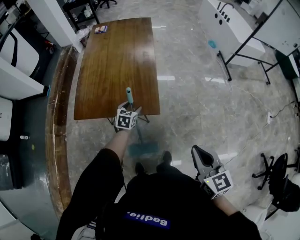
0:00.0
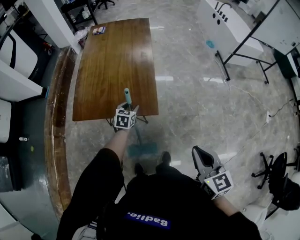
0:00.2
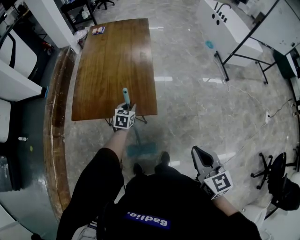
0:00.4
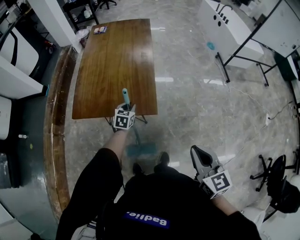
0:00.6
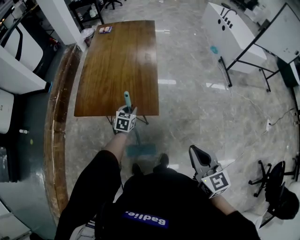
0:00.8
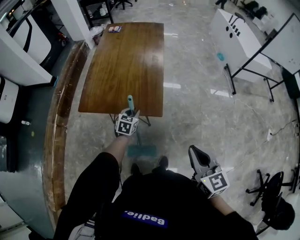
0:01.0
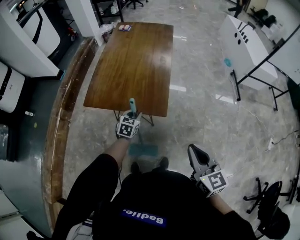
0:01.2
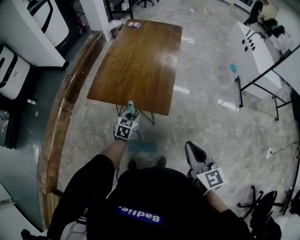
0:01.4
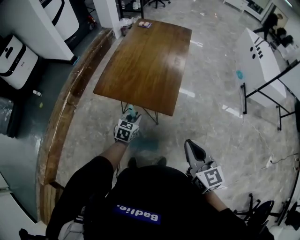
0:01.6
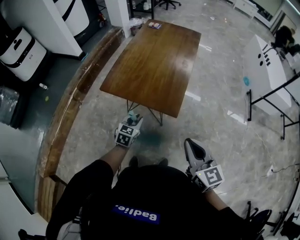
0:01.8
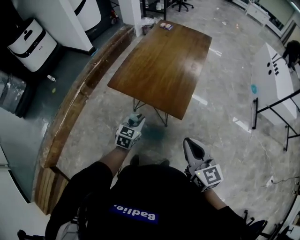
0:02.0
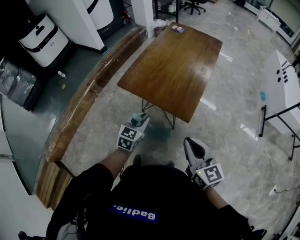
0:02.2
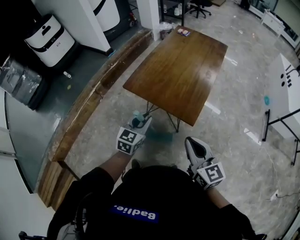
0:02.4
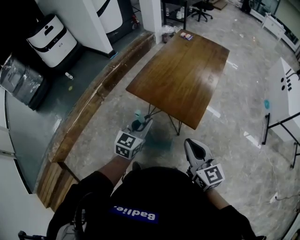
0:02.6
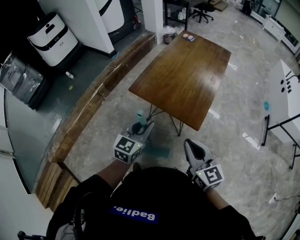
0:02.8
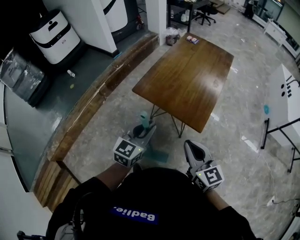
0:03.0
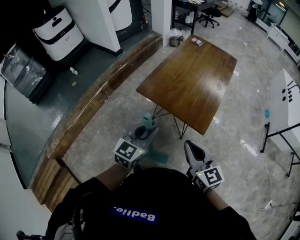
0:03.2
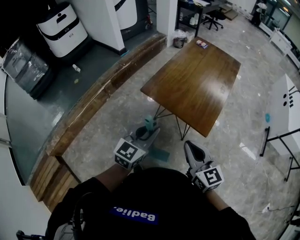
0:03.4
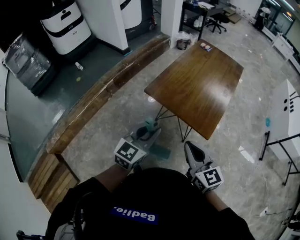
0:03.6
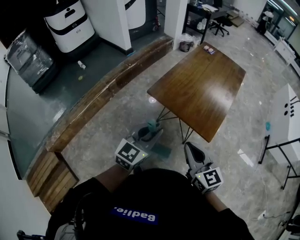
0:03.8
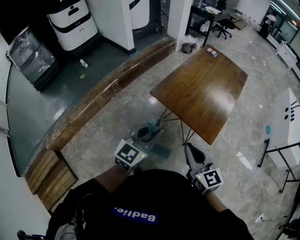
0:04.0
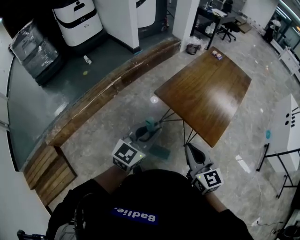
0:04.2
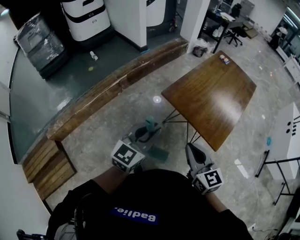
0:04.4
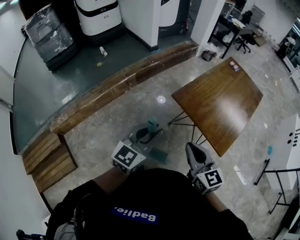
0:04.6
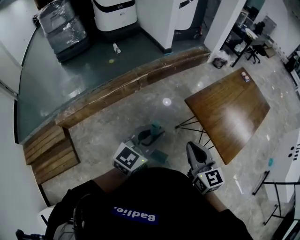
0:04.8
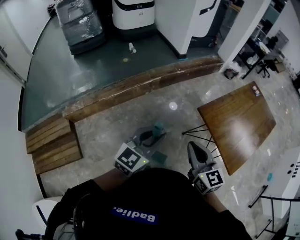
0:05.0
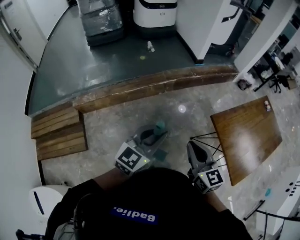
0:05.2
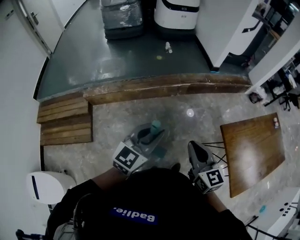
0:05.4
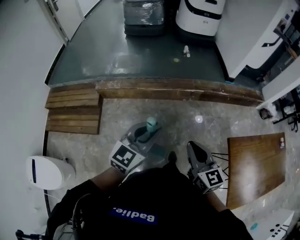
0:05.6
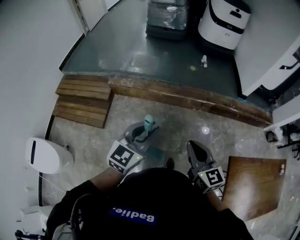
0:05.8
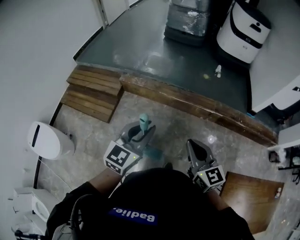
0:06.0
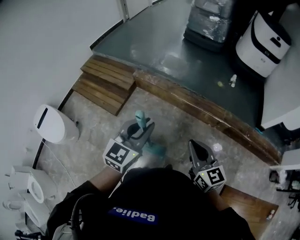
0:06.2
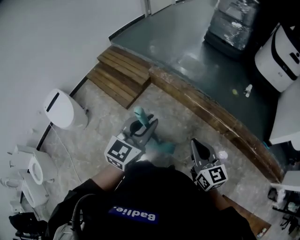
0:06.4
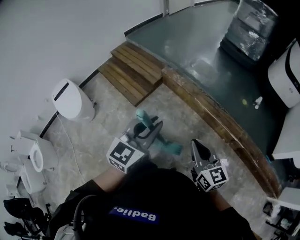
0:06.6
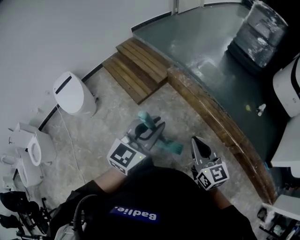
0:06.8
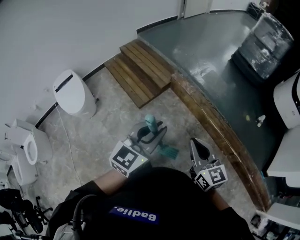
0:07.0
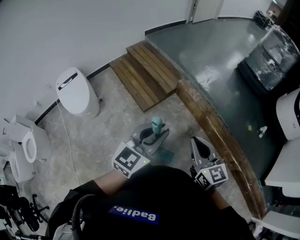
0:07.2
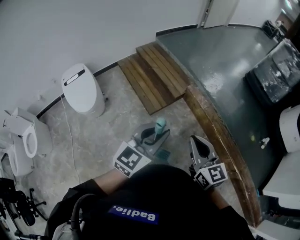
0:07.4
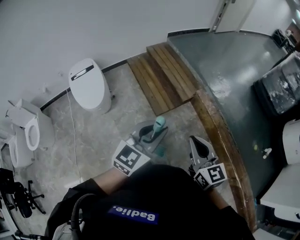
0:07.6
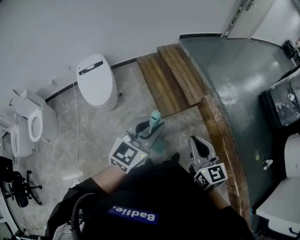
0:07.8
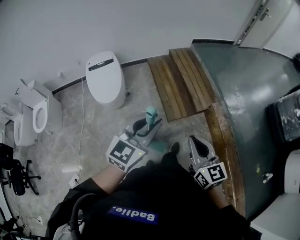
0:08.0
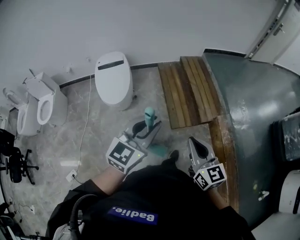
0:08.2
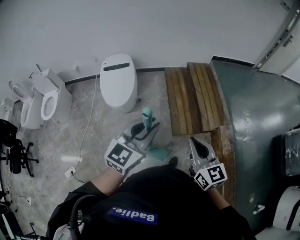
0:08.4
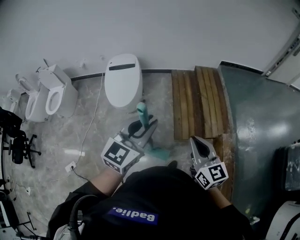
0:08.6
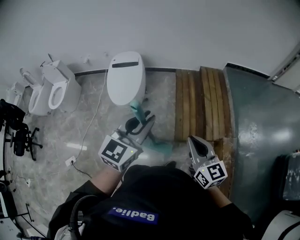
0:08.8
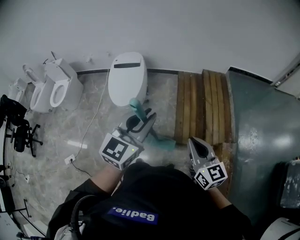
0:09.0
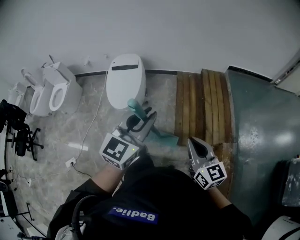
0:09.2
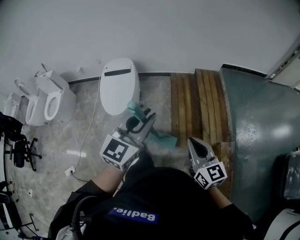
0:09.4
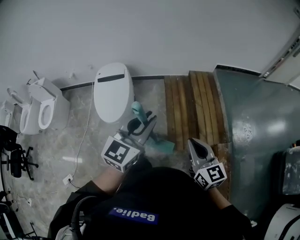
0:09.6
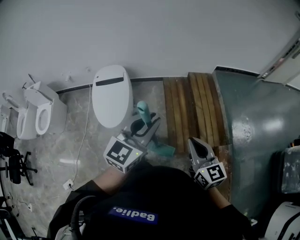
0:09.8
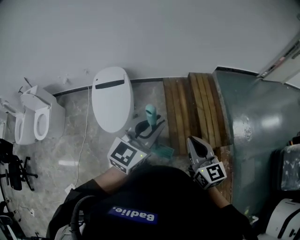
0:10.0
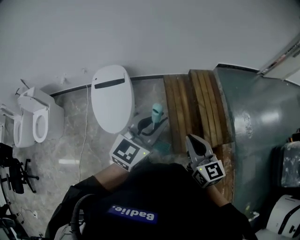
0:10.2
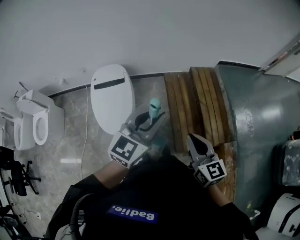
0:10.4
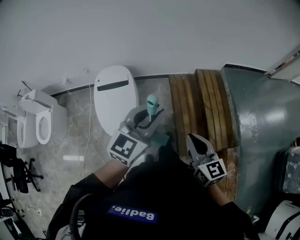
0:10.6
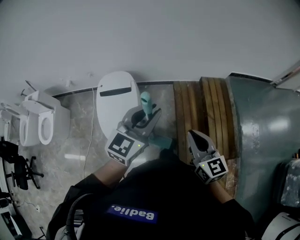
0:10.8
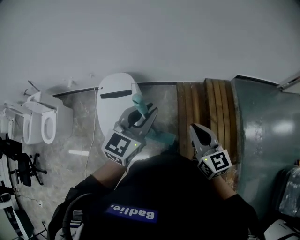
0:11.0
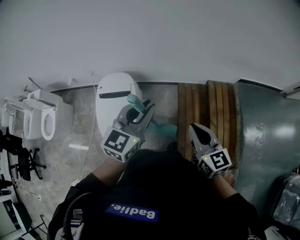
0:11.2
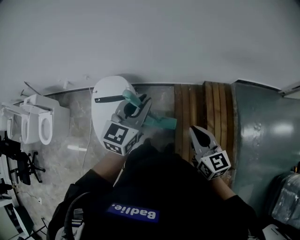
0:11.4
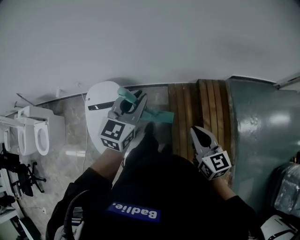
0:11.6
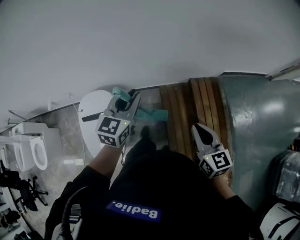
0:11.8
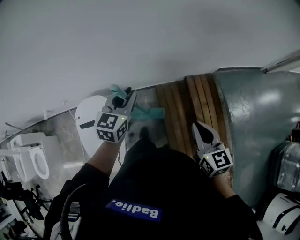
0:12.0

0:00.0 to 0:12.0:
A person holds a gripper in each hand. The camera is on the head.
0:00.0 to 0:01.6: The left gripper heads backward and to the left, covering about 15 cm, and closes up.
0:01.6 to 0:03.0: The right gripper is displaced to the left by about 15 cm; the left gripper moves upward and to the left, some 25 cm, and rotates some 20 degrees.
0:03.0 to 0:04.4: Both grippers move to the left, roughly 15 cm.
0:04.4 to 0:06.0: The two grippers travel together, some 40 cm. The left gripper rotates about 60 degrees. The right gripper turns by some 60 degrees.
0:06.0 to 0:07.6: The left gripper moves some 35 cm, and swivels roughly 40 degrees; the right gripper changes place by approximately 40 cm, and changes its angle by approximately 40 degrees.
0:07.6 to 0:09.0: The left gripper moves about 25 cm, and rotates roughly 40 degrees, while the right gripper shifts by about 30 cm, and swivels roughly 40 degrees.
0:09.0 to 0:10.4: The right gripper is displaced forward and to the left by some 25 cm. The left gripper heads forward, covering some 25 cm.
0:10.4 to 0:12.0: Both grippers travel together forward, approximately 40 cm.

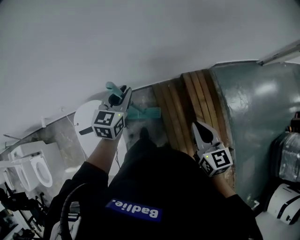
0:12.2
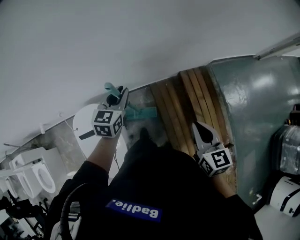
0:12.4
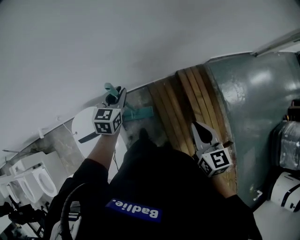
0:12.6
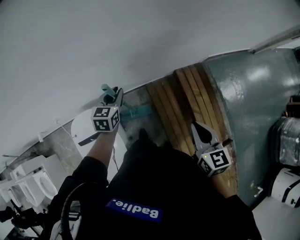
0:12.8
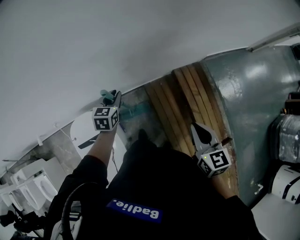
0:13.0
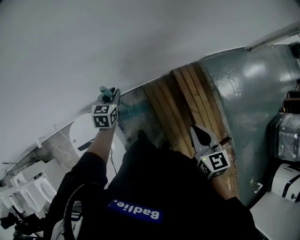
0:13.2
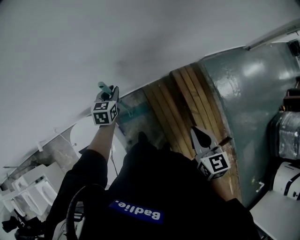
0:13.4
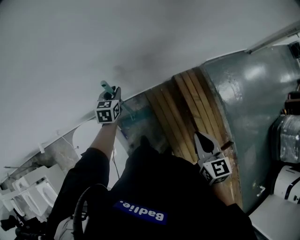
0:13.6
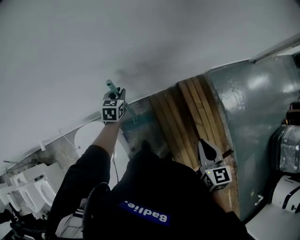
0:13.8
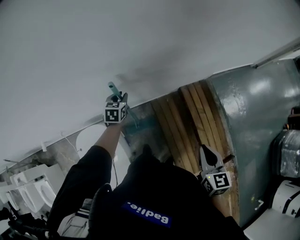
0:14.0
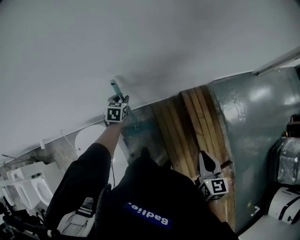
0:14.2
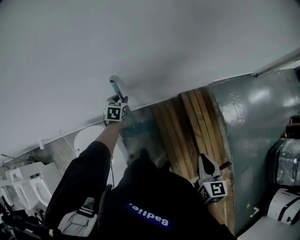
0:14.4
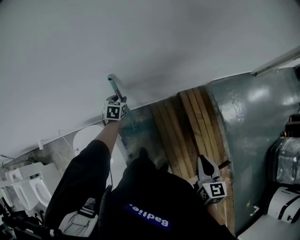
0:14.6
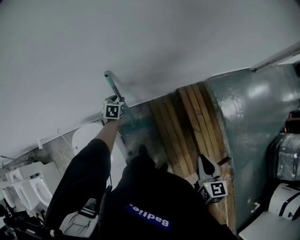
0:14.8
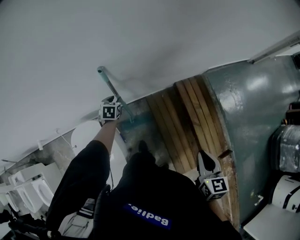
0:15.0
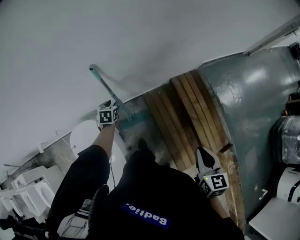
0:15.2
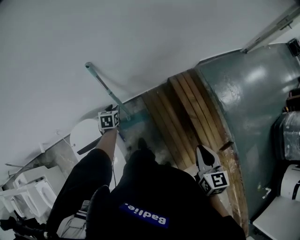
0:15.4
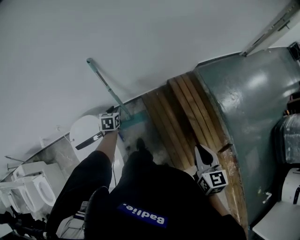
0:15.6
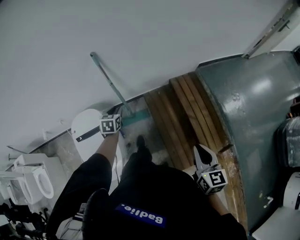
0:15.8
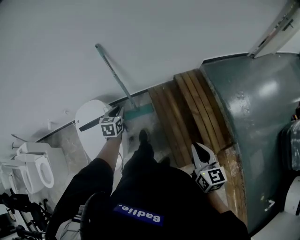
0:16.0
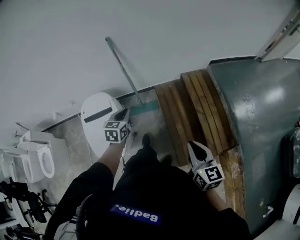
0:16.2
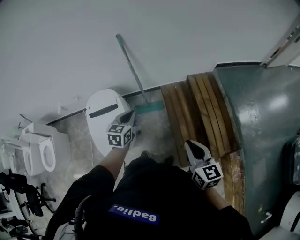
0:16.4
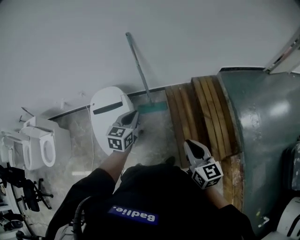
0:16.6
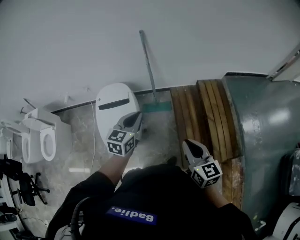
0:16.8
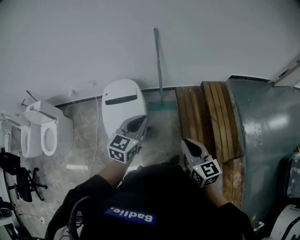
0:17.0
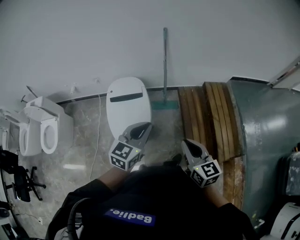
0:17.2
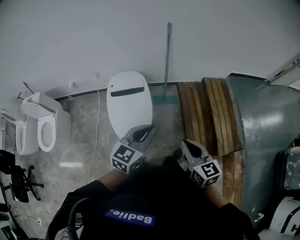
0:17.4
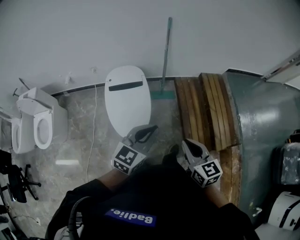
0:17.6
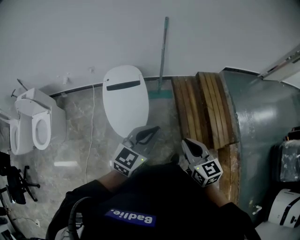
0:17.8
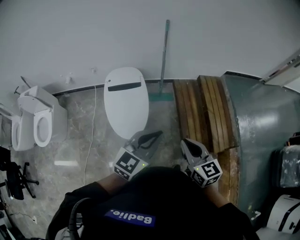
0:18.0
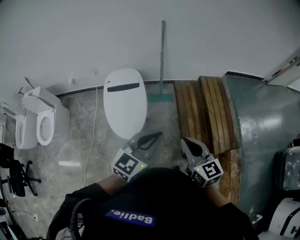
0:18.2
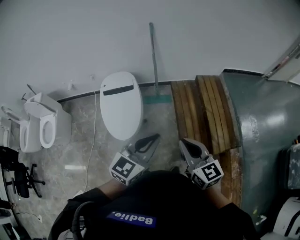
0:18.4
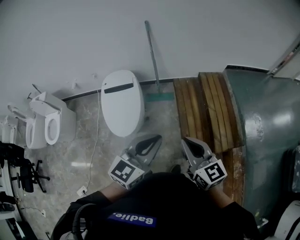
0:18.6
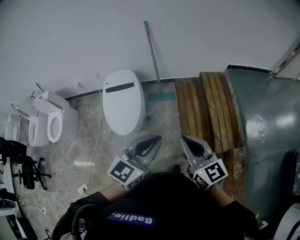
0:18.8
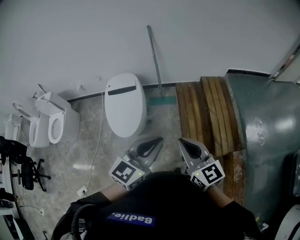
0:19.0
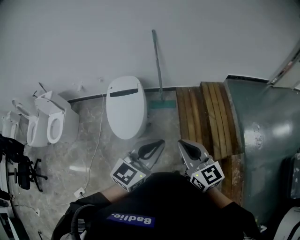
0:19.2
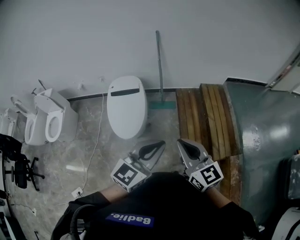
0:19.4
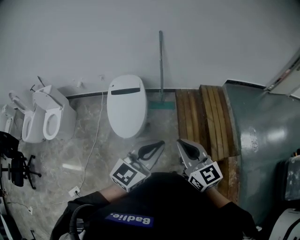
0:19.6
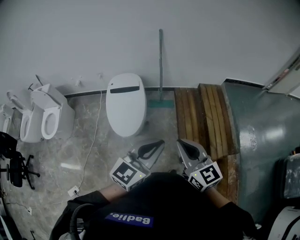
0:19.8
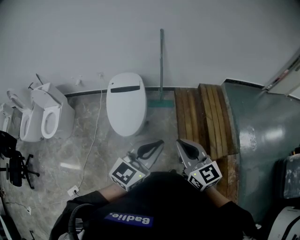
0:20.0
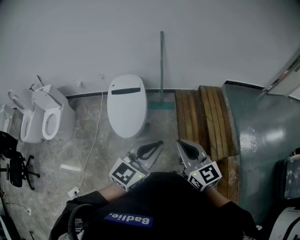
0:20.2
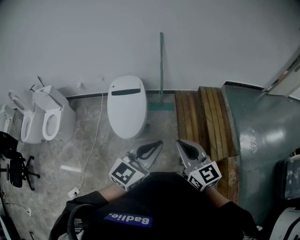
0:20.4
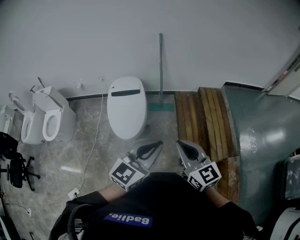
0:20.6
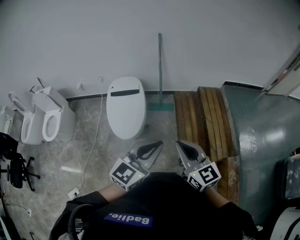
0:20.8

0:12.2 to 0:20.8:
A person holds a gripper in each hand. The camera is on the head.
0:12.2 to 0:13.6: The left gripper is displaced downward and forward by some 20 cm.
0:13.6 to 0:15.0: The right gripper goes roughly 5 cm backward. The left gripper shifts roughly 10 cm downward.
0:15.0 to 0:16.6: The right gripper heads backward, covering some 20 cm, and changes its angle by approximately 30 degrees. The left gripper goes roughly 50 cm backward and upward, rotates roughly 20 degrees, and closes up.
0:16.6 to 0:18.0: The left gripper moves backward and upward, approximately 25 cm, and rotates approximately 30 degrees; the right gripper heads to the left and backward, covering some 25 cm.
0:18.0 to 0:19.4: The left gripper heads to the right, backward and upward, covering some 20 cm. The right gripper moves to the right, upward and backward, some 15 cm.
0:19.4 to 0:20.8: The grippers move only a little.

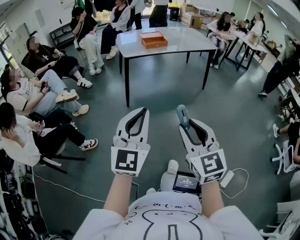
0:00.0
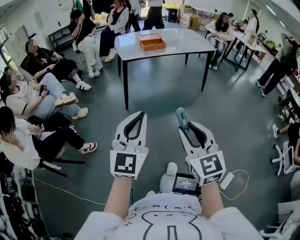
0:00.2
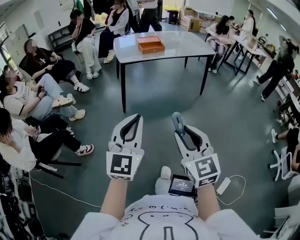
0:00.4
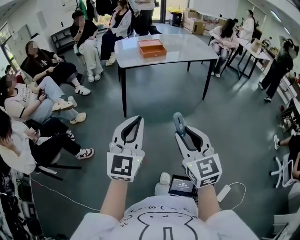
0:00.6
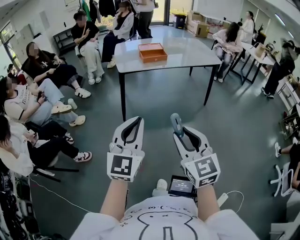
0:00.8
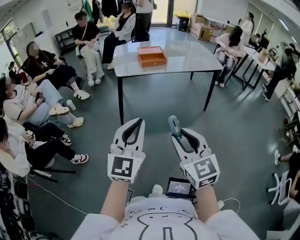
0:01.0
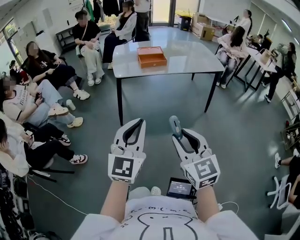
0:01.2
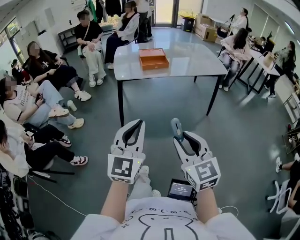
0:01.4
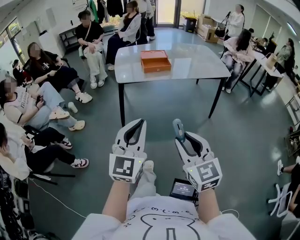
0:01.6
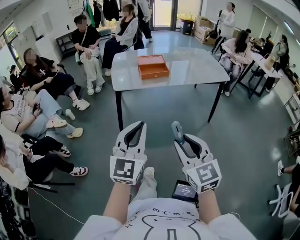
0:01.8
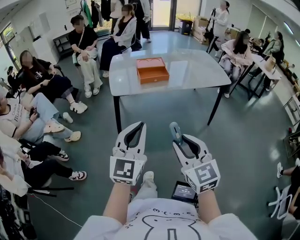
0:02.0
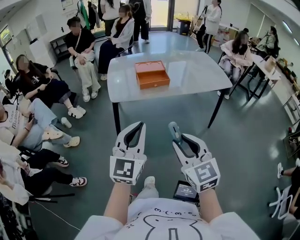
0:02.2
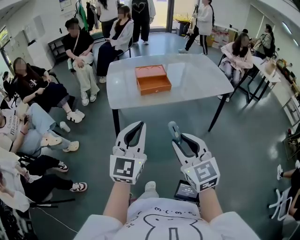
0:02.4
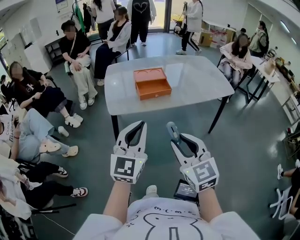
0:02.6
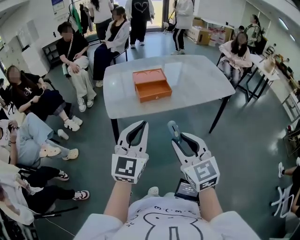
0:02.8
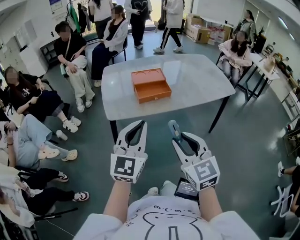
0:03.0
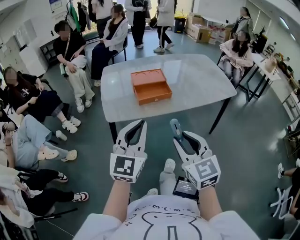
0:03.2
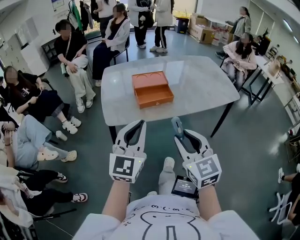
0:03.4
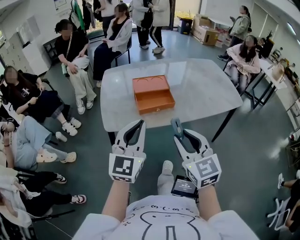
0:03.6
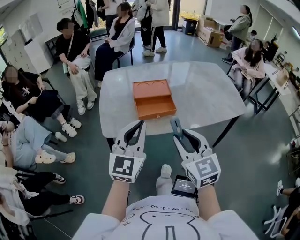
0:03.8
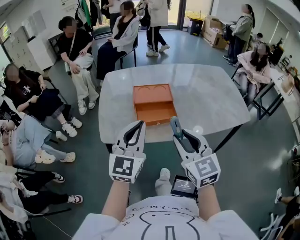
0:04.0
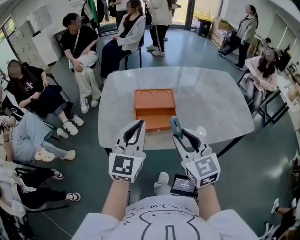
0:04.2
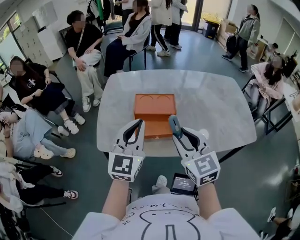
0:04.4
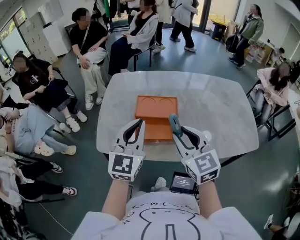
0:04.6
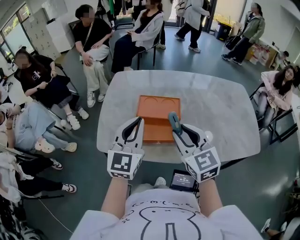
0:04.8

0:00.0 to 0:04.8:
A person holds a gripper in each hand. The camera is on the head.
0:00.0 to 0:01.6: The grippers both shift forward and to the right by roughly 30 cm.
0:01.6 to 0:03.2: The two grippers go some 30 cm forward.
0:03.2 to 0:04.8: Both grippers travel together forward, roughly 30 cm. The right gripper changes its angle by some 20 degrees. The left gripper swivels about 20 degrees.
